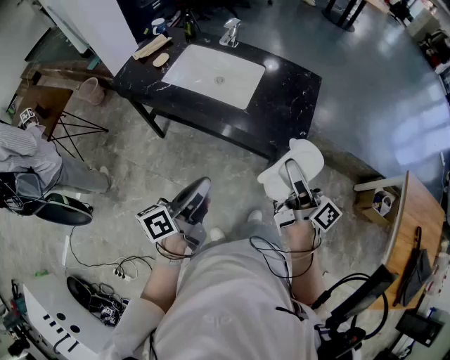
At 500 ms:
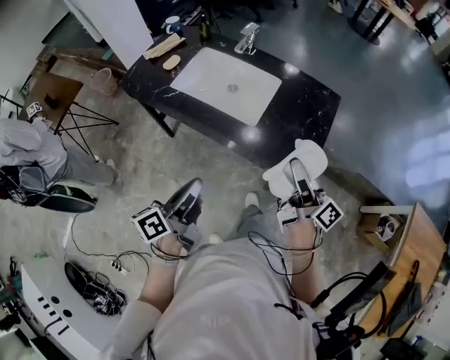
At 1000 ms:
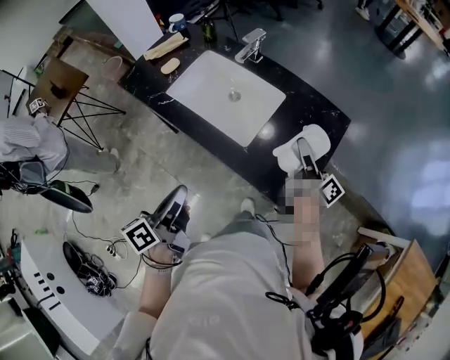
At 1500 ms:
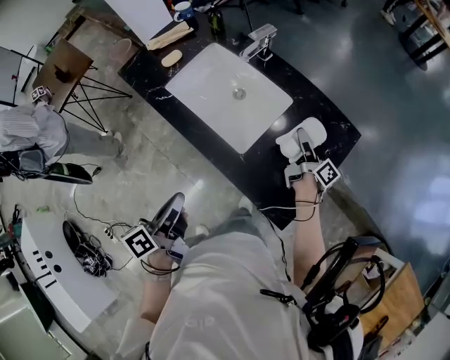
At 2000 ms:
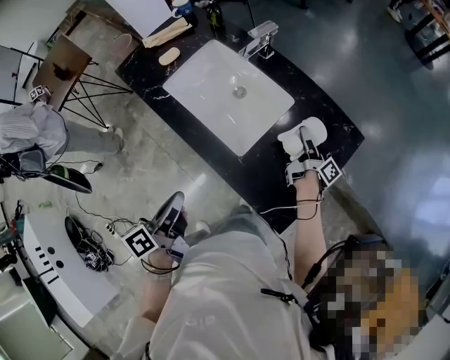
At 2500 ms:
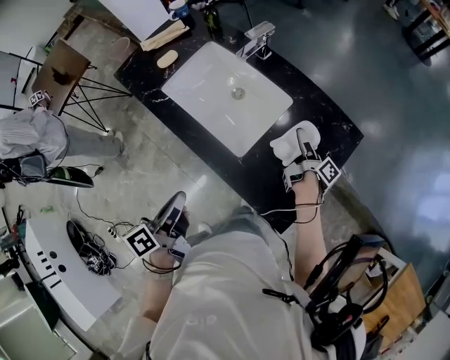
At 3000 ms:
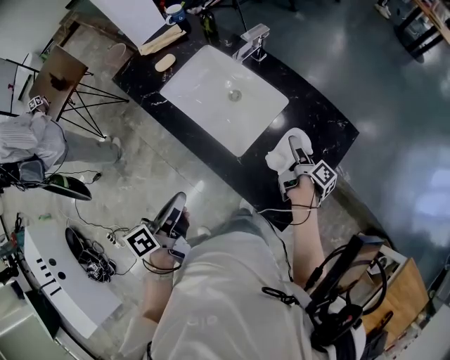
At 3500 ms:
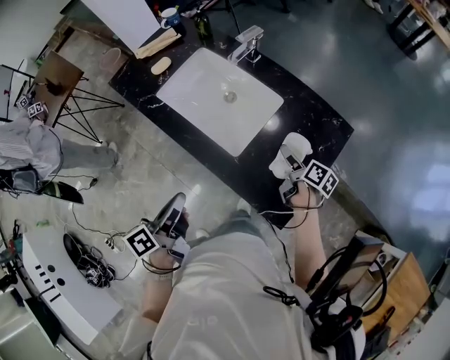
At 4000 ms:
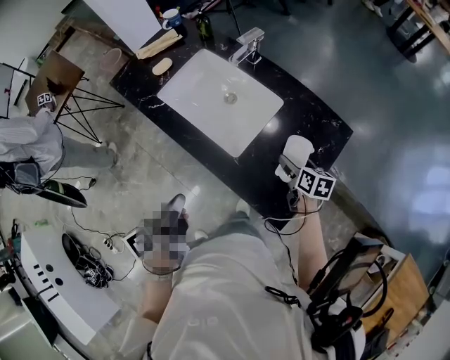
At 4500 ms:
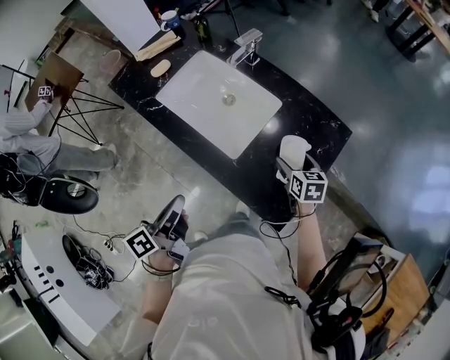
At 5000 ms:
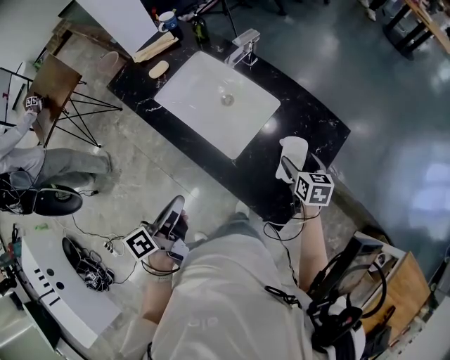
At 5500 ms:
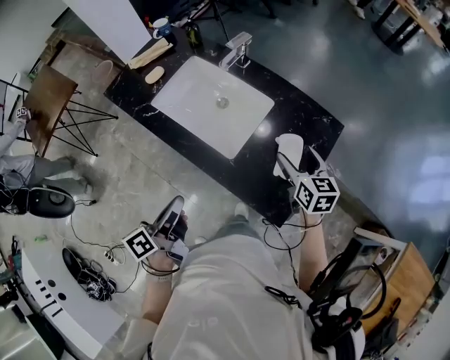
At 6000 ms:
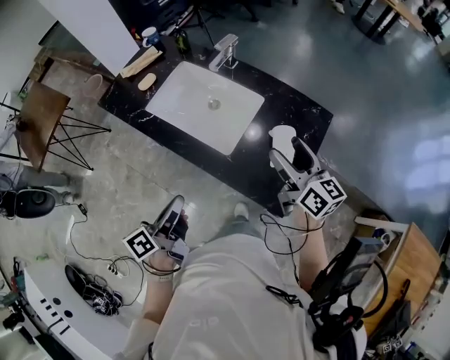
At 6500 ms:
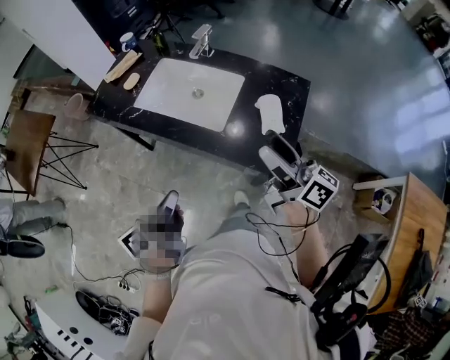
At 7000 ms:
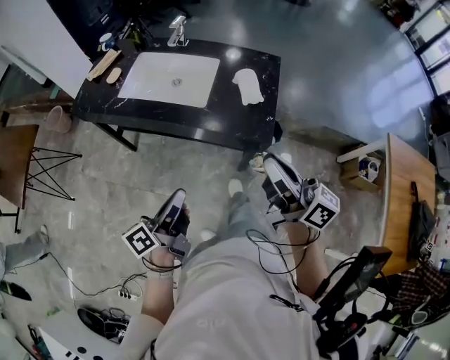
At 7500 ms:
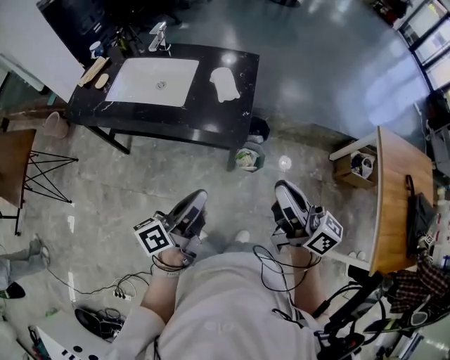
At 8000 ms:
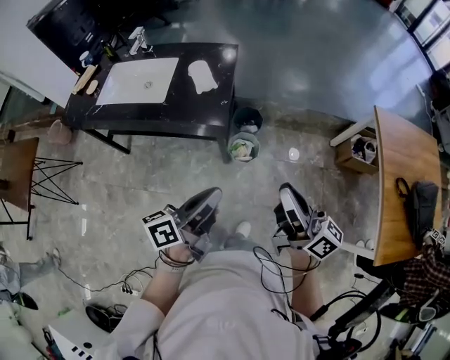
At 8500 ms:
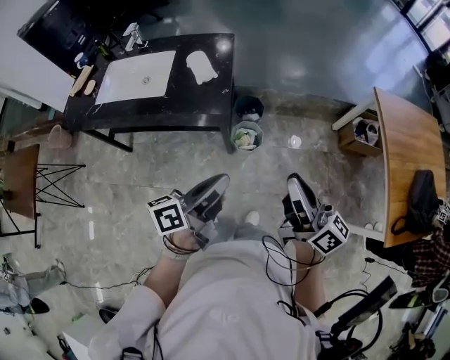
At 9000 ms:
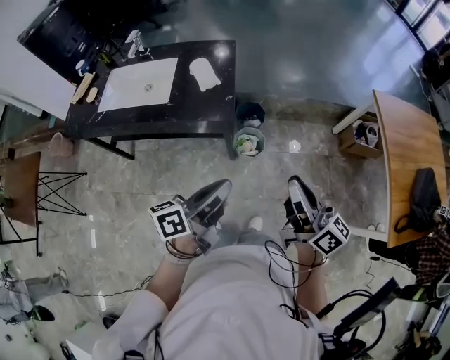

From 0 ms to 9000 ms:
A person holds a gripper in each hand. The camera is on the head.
From 0 ms to 2000 ms: The right gripper shifts approximately 50 cm forward and downward, and changes its angle by approximately 30 degrees. Meanwhile the left gripper travels forward by approximately 20 cm, and rotates roughly 30 degrees.
From 2000 ms to 4500 ms: The right gripper heads backward, covering roughly 10 cm, rolls counterclockwise, seen from behind, by about 70 degrees, and opens up.
From 4500 ms to 7000 ms: The left gripper is displaced backward by roughly 20 cm, and turns by approximately 30 degrees. The right gripper is displaced backward and upward by roughly 50 cm, tips its fingers upward by roughly 60 degrees, and closes up.
From 7000 ms to 9000 ms: The right gripper ends up about 25 cm from where it was, and swivels roughly 20 degrees. Meanwhile the left gripper ends up roughly 25 cm from where it was, and changes its angle by some 30 degrees.

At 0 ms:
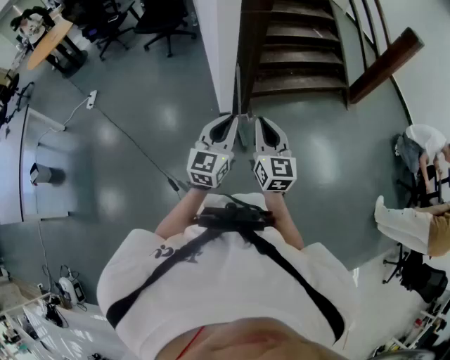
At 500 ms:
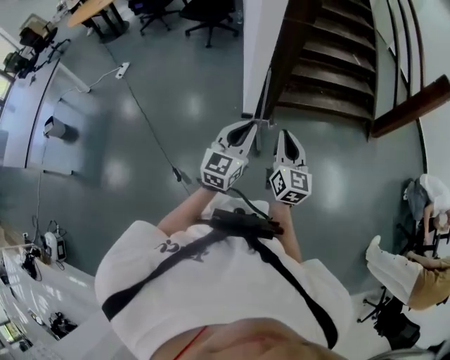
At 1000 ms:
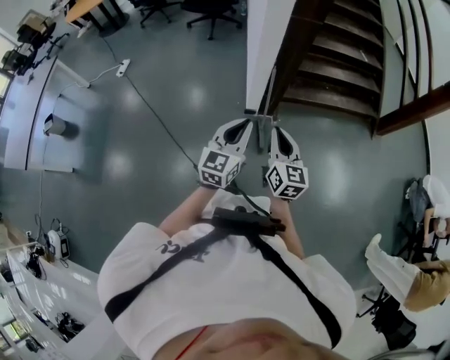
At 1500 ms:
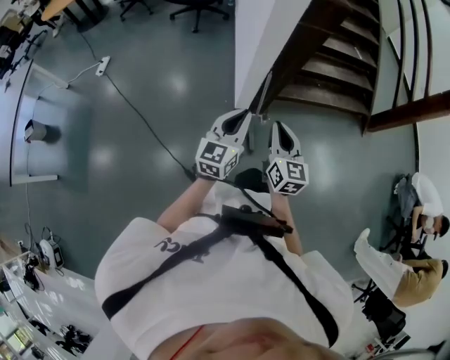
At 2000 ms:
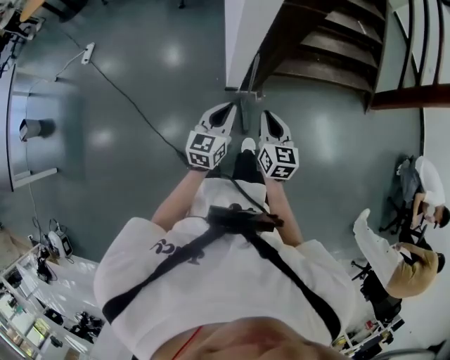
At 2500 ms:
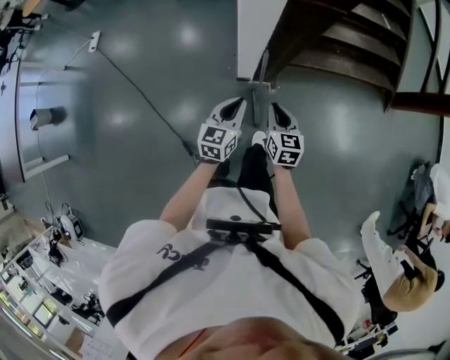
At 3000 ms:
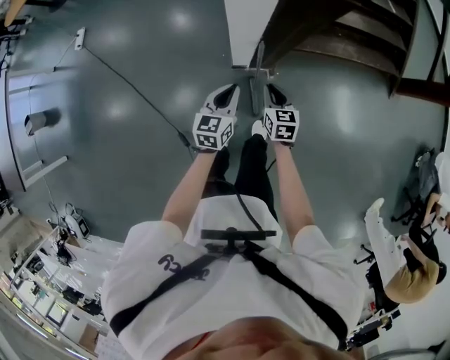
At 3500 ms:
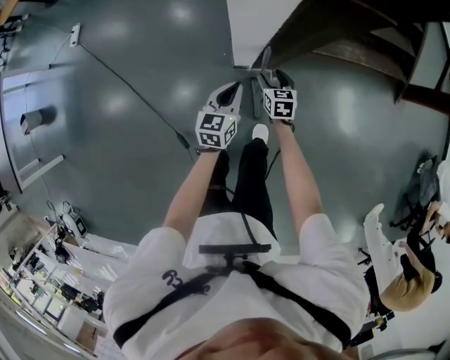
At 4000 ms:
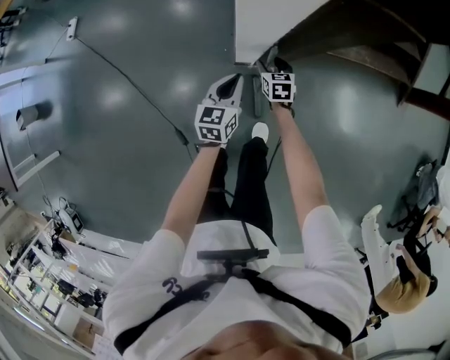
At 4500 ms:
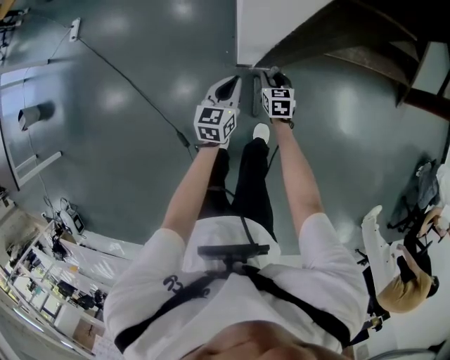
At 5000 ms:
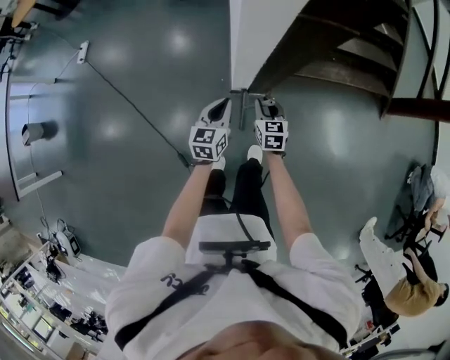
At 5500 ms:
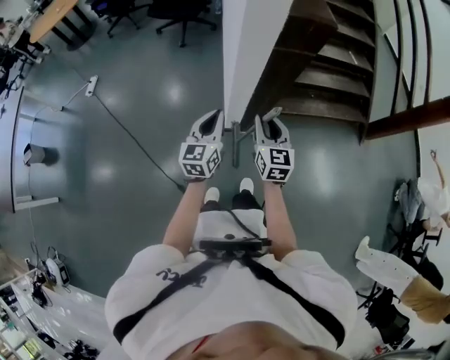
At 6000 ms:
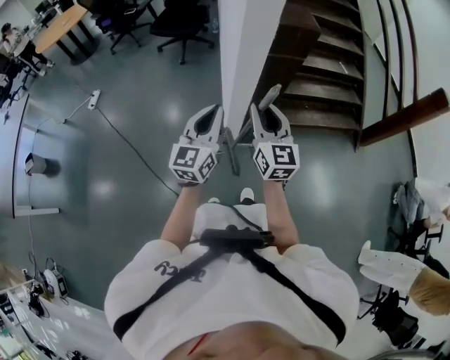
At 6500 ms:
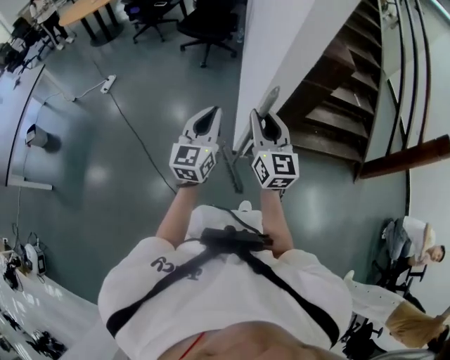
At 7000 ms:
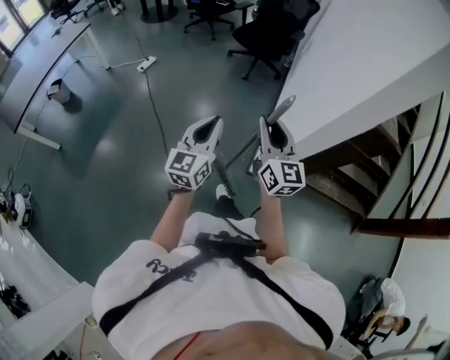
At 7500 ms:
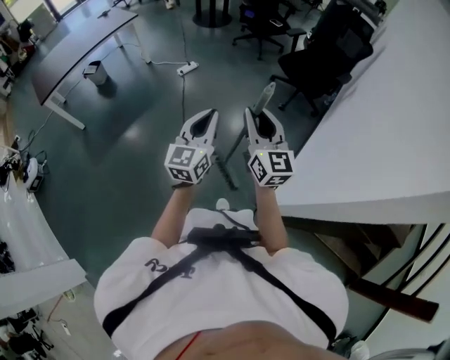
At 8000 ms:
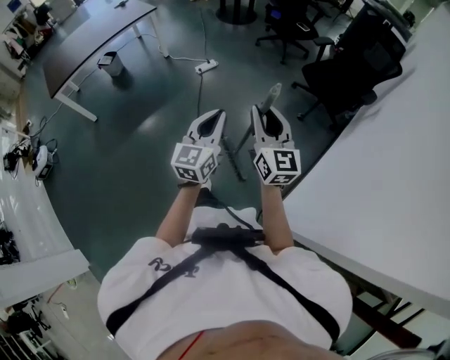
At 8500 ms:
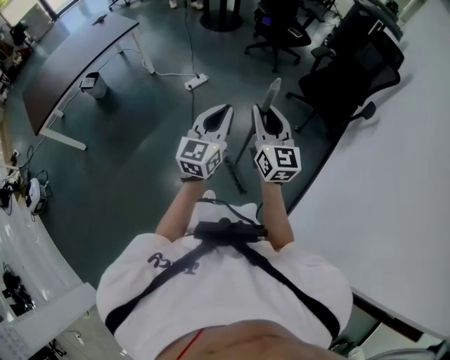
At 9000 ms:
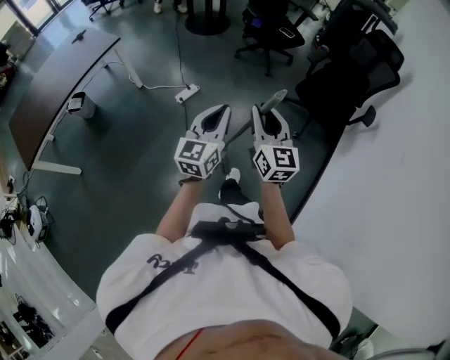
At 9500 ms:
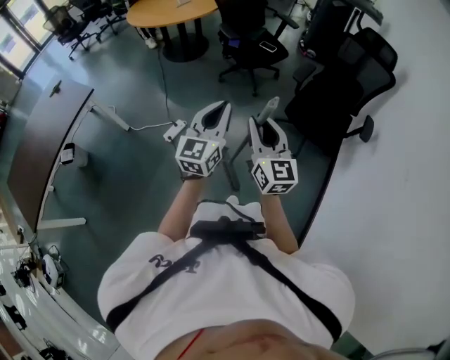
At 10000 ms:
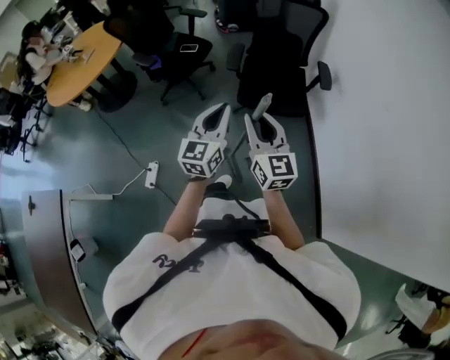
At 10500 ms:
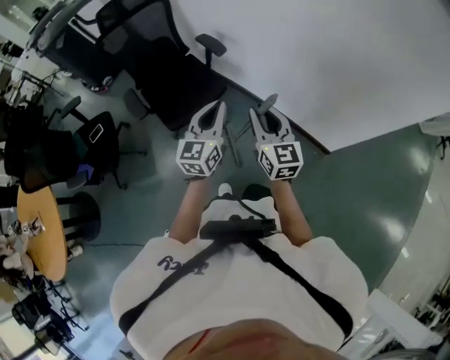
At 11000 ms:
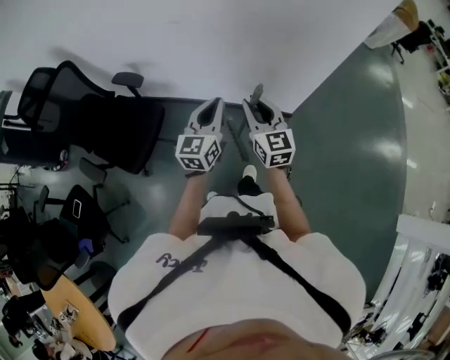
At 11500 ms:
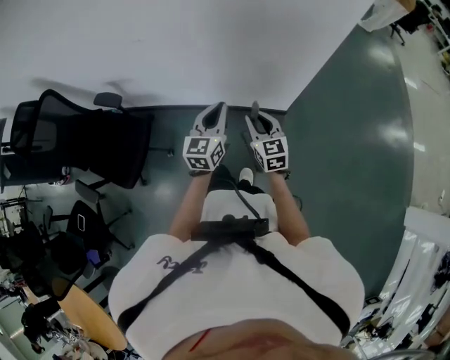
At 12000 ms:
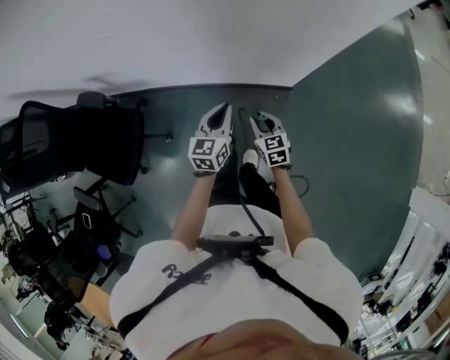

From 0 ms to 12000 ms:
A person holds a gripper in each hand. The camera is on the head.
From 0 ms to 2000 ms: The two grippers go approximately 30 cm forward and downward. The right gripper rotates roughly 20 degrees.
From 2000 ms to 4000 ms: The left gripper moves downward and forward, roughly 30 cm. The right gripper heads downward and forward, covering roughly 50 cm, rotates approximately 30 degrees, and opens its fingers.
From 4000 ms to 6000 ms: The grippers both shift upward by roughly 50 cm. The left gripper points its fingers some 30 degrees further upward; the right gripper angles its fingers upward, by some 50 degrees, and closes up.
From 6000 ms to 8000 ms: The pair of grippers is taken about 60 cm. The left gripper changes its angle by roughly 50 degrees; the right gripper rotates some 50 degrees.
From 8000 ms to 10000 ms: The two grippers travel together, approximately 70 cm. The right gripper turns by some 50 degrees. The left gripper swivels roughly 50 degrees.
From 10000 ms to 12000 ms: Both grippers are carried approximately 60 cm. The right gripper tips its fingers downward by roughly 40 degrees; the left gripper changes its angle by about 80 degrees.

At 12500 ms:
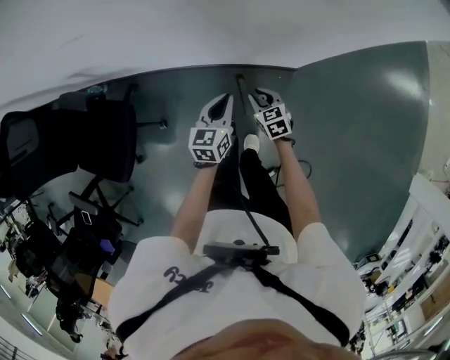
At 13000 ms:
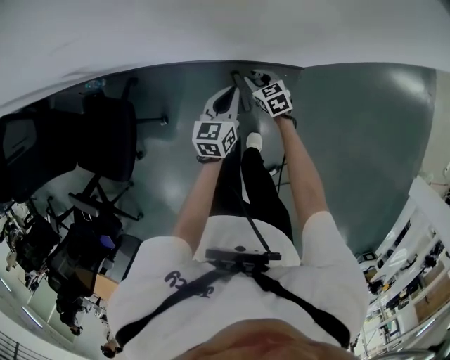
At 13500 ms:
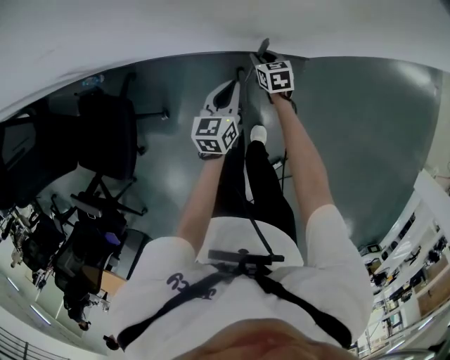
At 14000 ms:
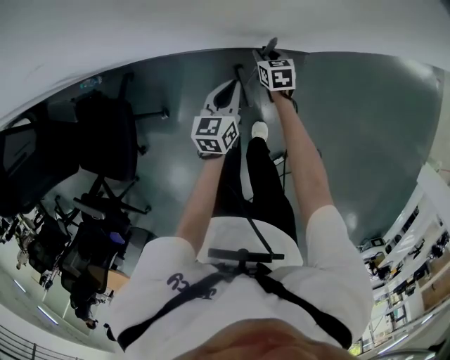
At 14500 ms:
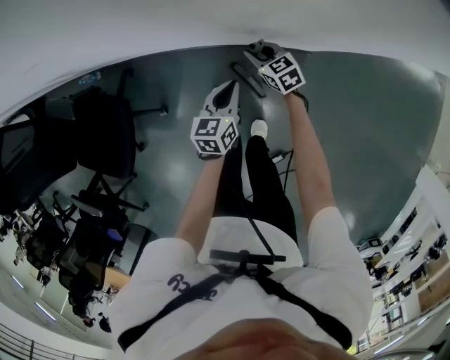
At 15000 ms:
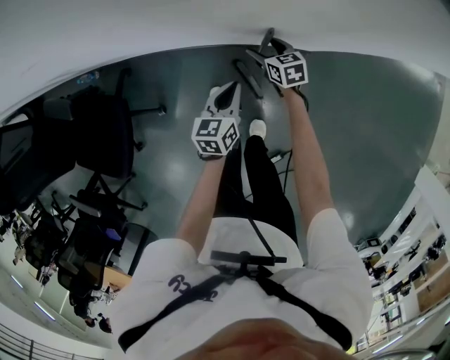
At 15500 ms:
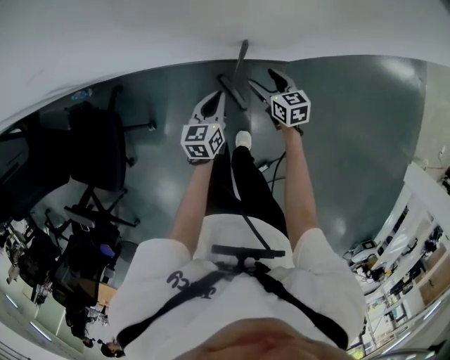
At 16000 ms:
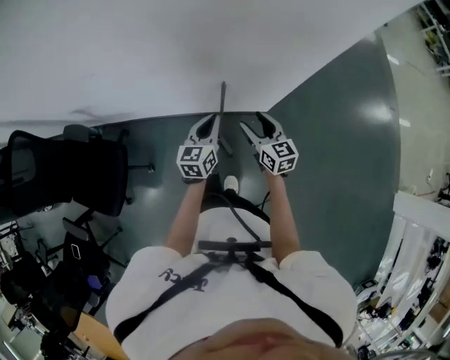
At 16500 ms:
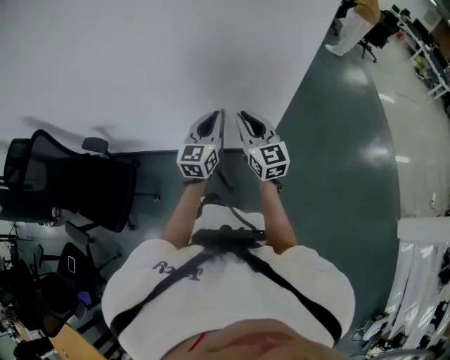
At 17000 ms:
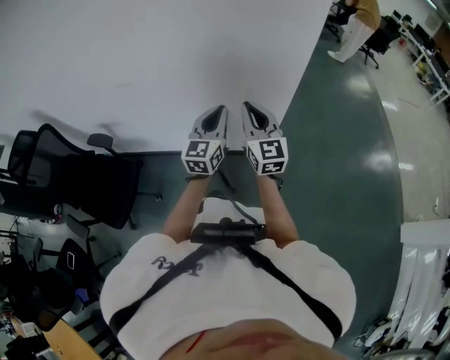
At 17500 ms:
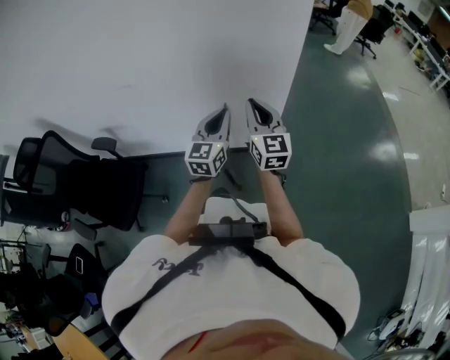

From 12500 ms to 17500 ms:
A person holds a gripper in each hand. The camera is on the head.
From 12500 ms to 15000 ms: The left gripper moves downward, approximately 5 cm; the right gripper is displaced forward by about 15 cm, and opens up.
From 15000 ms to 17500 ms: The left gripper moves upward, approximately 40 cm, and points its fingers roughly 30 degrees further upward; the right gripper heads upward and backward, covering roughly 60 cm, tilts its fingers about 50 degrees upward, and closes up.
